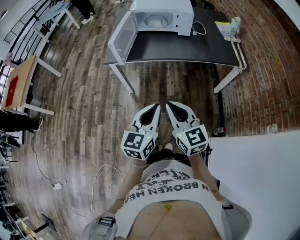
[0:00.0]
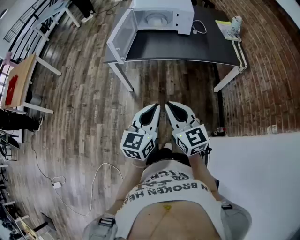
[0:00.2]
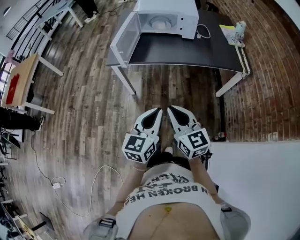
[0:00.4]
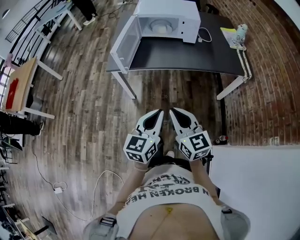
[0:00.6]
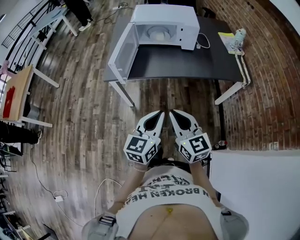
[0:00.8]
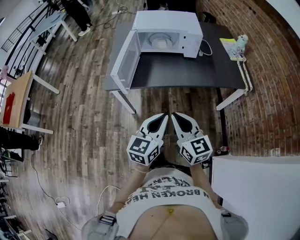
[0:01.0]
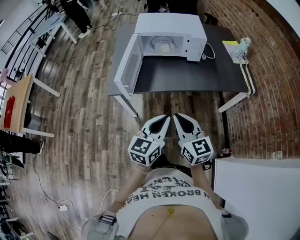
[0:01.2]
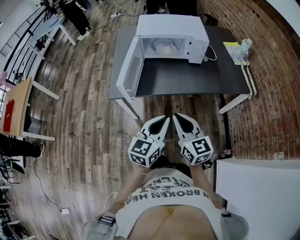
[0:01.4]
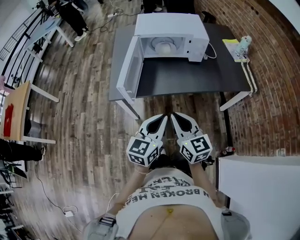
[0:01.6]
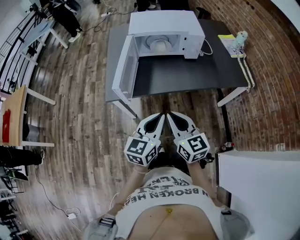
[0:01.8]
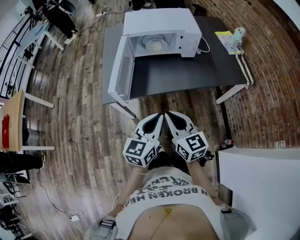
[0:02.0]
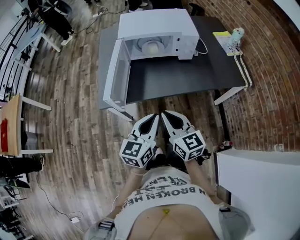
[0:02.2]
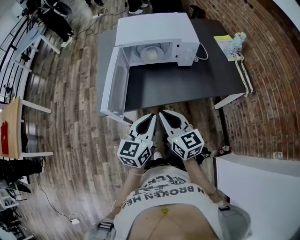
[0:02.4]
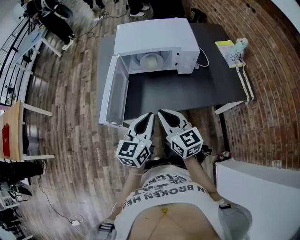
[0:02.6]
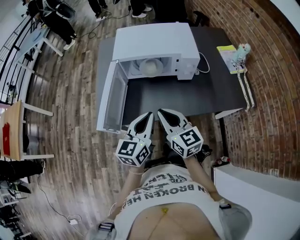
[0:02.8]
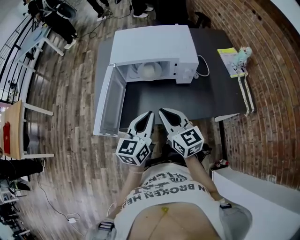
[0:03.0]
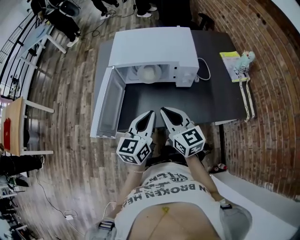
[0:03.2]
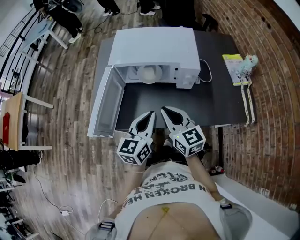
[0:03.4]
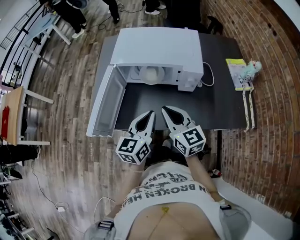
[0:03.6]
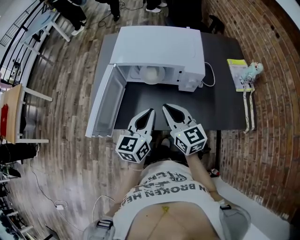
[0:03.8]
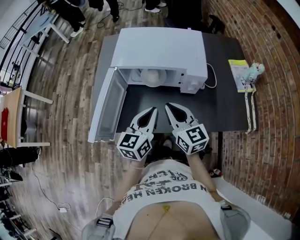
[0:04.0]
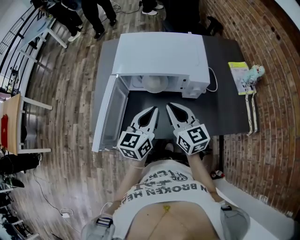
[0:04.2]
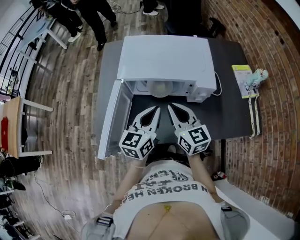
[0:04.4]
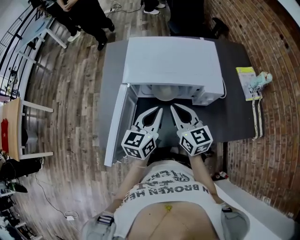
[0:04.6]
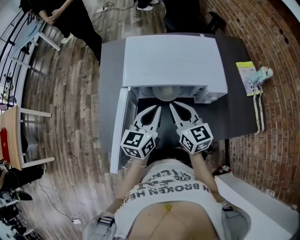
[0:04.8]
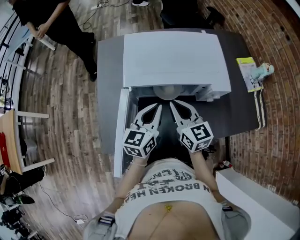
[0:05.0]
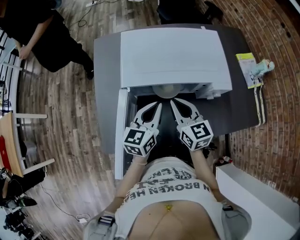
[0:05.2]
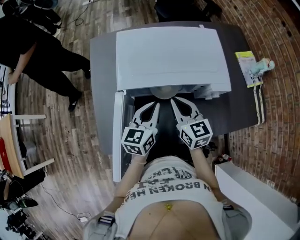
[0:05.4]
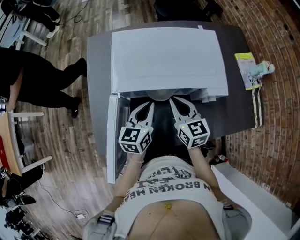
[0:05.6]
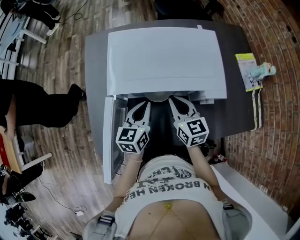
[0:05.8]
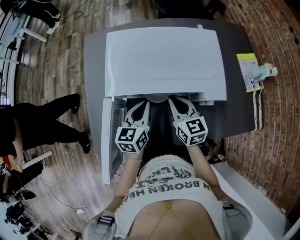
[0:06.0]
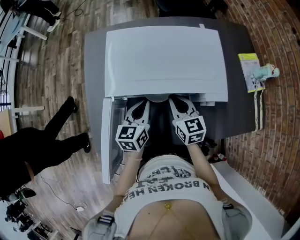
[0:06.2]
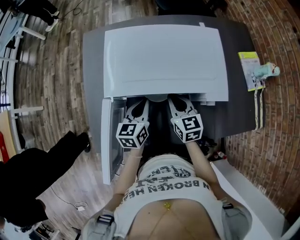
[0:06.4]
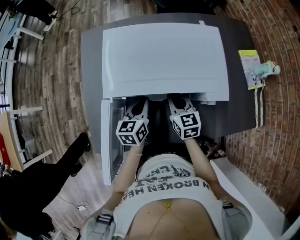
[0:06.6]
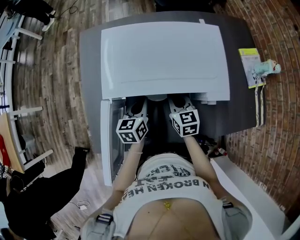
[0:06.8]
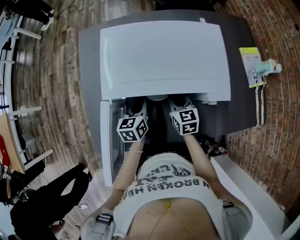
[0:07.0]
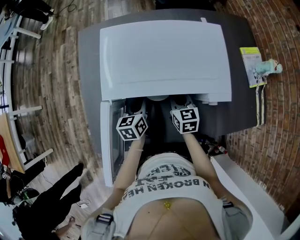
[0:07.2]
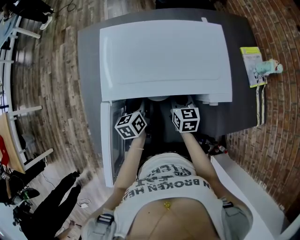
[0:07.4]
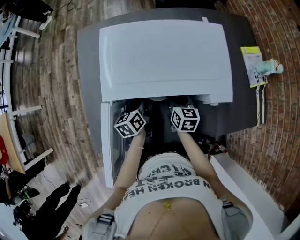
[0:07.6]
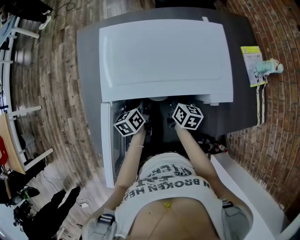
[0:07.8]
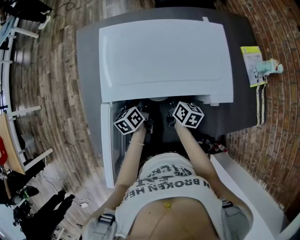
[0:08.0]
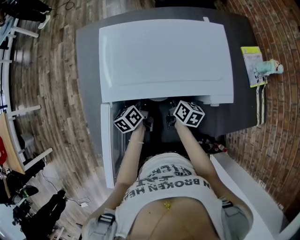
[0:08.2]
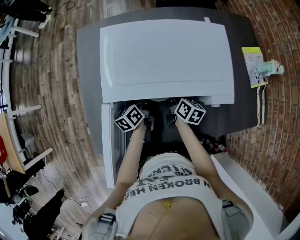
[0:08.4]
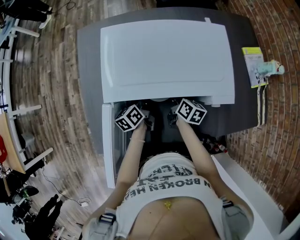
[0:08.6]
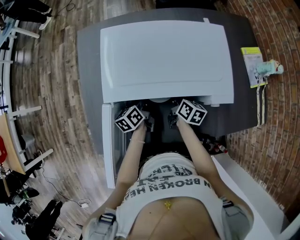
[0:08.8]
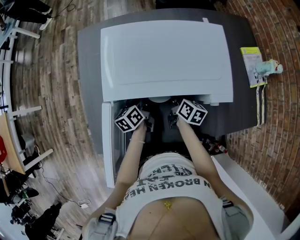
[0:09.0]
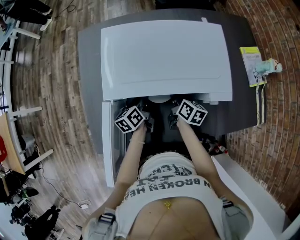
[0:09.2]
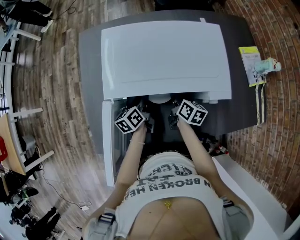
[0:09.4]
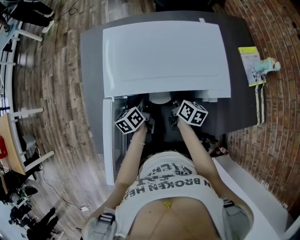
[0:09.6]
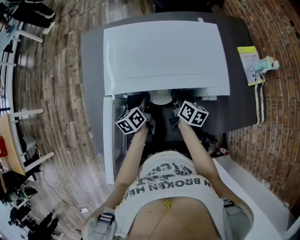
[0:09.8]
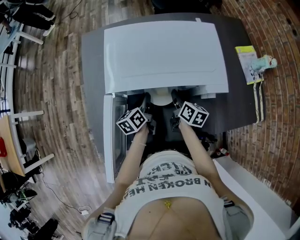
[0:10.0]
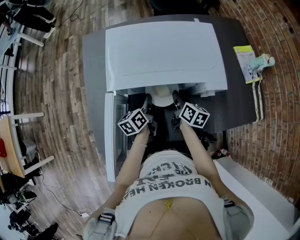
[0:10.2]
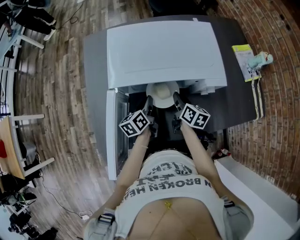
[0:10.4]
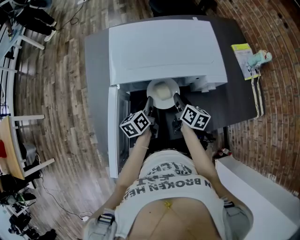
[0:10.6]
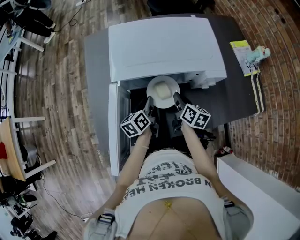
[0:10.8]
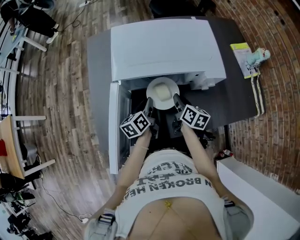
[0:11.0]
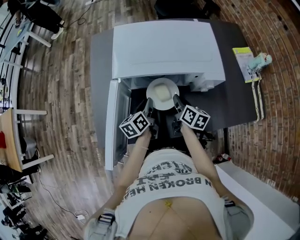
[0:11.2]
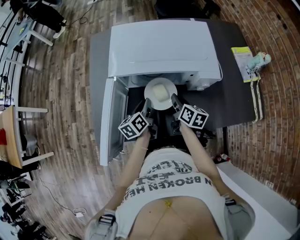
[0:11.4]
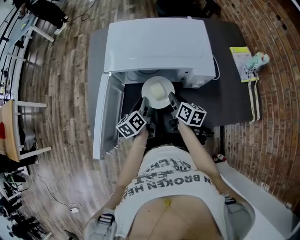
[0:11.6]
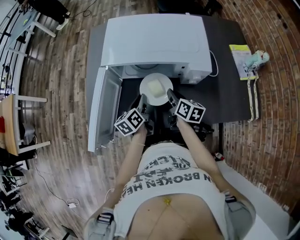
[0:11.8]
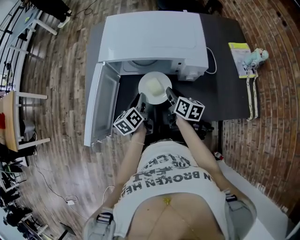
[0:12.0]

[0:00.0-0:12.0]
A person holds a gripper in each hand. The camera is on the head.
0:00.0 to 0:01.6: The grippers both shift forward by about 25 cm.
0:01.6 to 0:03.0: The two grippers go about 25 cm forward.
0:03.0 to 0:04.4: The grippers both shift forward by roughly 15 cm.
0:04.4 to 0:06.0: Both grippers move forward and downward, some 15 cm.
0:06.0 to 0:07.6: Both grippers move downward, roughly 10 cm. The right gripper changes its angle by about 20 degrees, and opens. Meanwhile the left gripper rotates about 30 degrees, and opens its fingers.
0:07.6 to 0:09.0: The right gripper swivels some 20 degrees, and closes up.
0:09.0 to 0:10.4: The two grippers go about 5 cm backward.
0:10.4 to 0:12.0: The two grippers go roughly 10 cm backward.

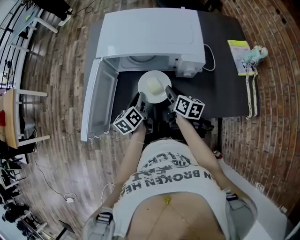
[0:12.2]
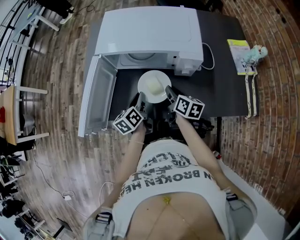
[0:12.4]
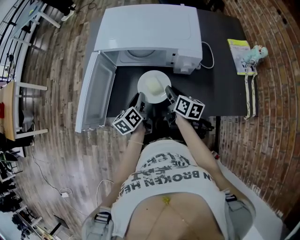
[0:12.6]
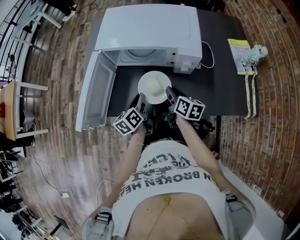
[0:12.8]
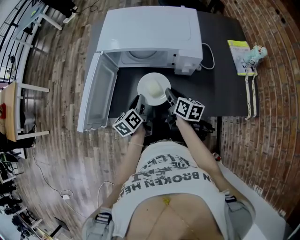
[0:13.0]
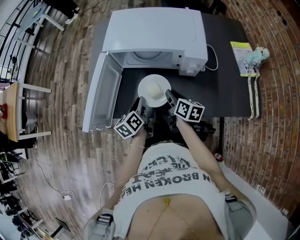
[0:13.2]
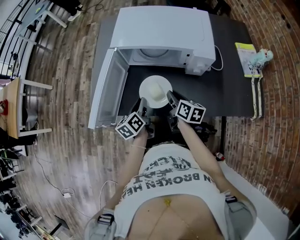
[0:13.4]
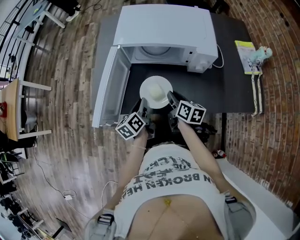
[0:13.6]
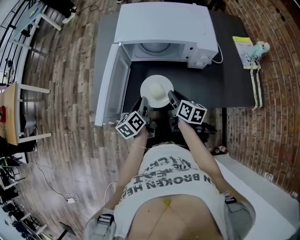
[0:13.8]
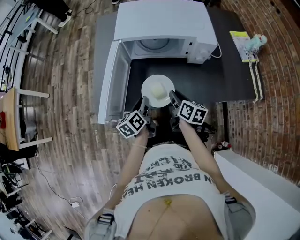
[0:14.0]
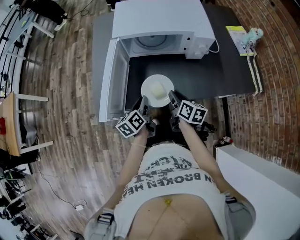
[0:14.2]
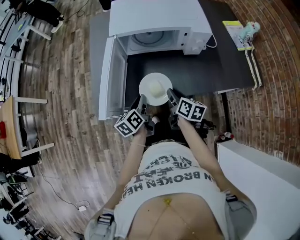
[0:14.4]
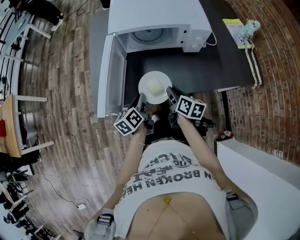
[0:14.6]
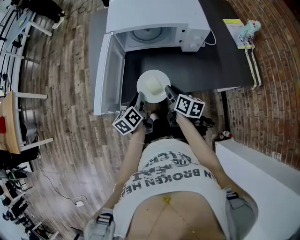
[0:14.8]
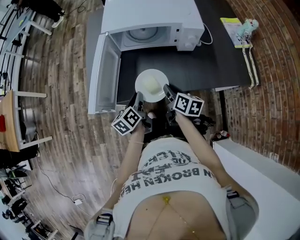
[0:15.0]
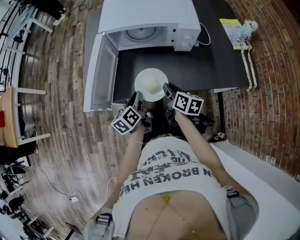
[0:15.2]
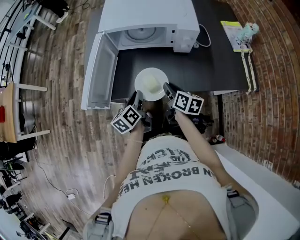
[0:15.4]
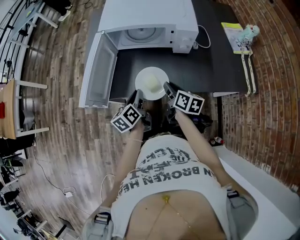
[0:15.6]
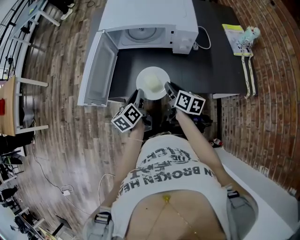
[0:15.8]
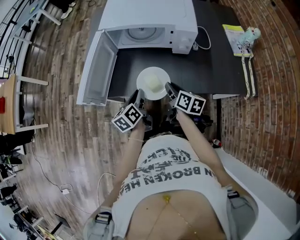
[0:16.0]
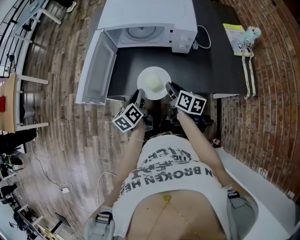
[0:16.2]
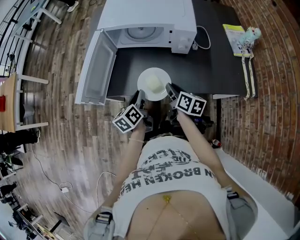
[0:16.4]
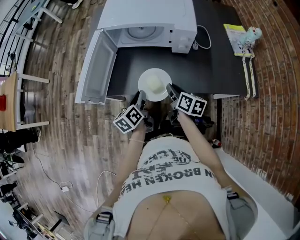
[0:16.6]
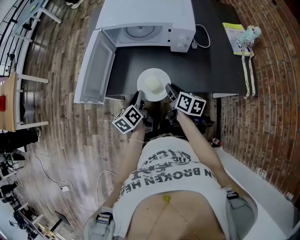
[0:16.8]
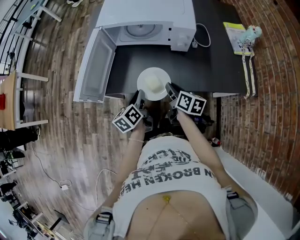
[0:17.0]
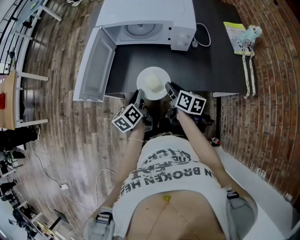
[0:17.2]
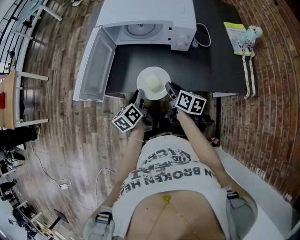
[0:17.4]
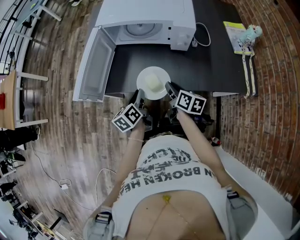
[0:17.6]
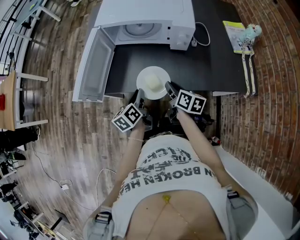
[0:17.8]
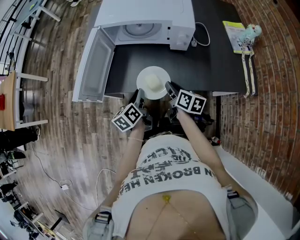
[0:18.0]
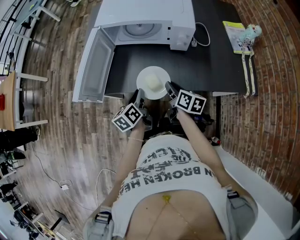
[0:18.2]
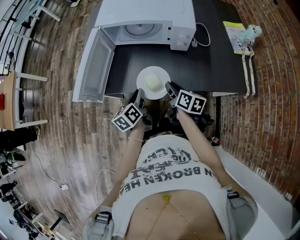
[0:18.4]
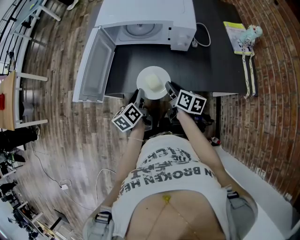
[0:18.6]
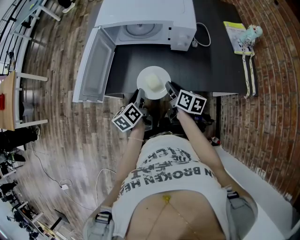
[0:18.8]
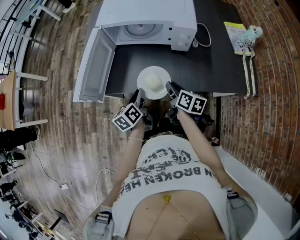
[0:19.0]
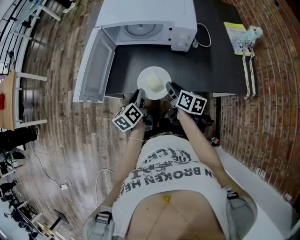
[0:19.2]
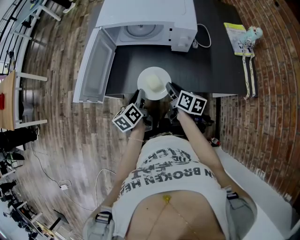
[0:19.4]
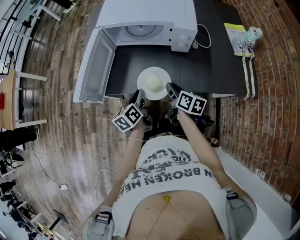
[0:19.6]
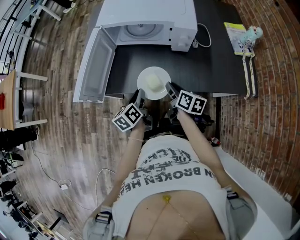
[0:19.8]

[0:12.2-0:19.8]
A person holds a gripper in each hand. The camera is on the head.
0:12.2 to 0:13.8: The grippers both shift to the left and backward by roughly 10 cm.
0:13.8 to 0:15.2: Both grippers move backward, approximately 5 cm.
0:15.2 to 0:16.8: Both grippers move to the right, roughly 5 cm.
0:16.8 to 0:19.8: The two grippers keep their place.

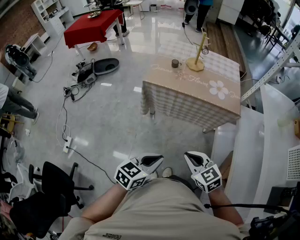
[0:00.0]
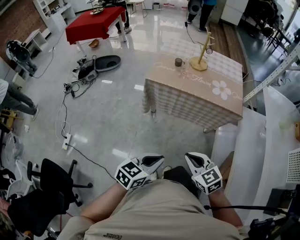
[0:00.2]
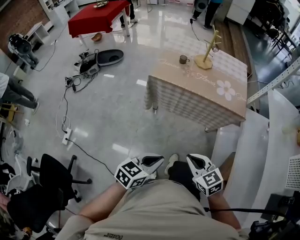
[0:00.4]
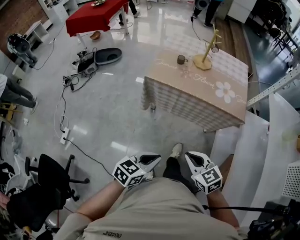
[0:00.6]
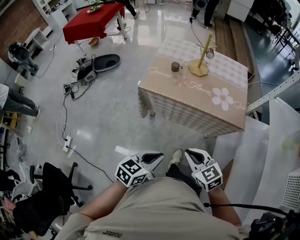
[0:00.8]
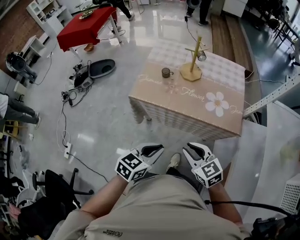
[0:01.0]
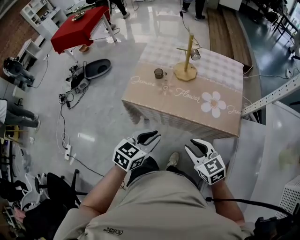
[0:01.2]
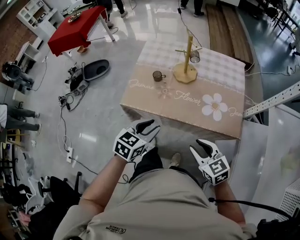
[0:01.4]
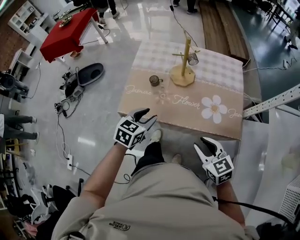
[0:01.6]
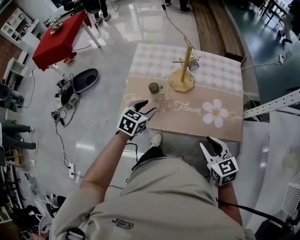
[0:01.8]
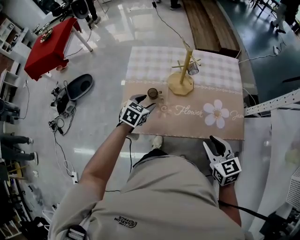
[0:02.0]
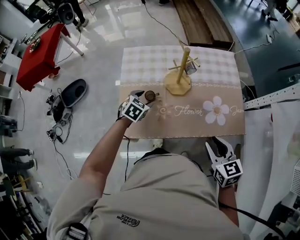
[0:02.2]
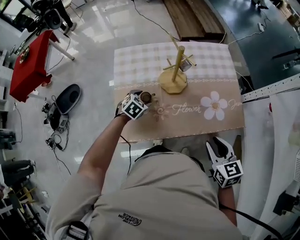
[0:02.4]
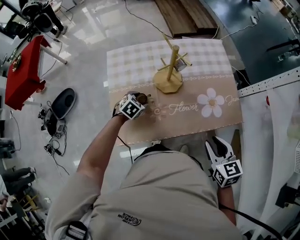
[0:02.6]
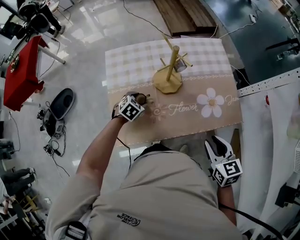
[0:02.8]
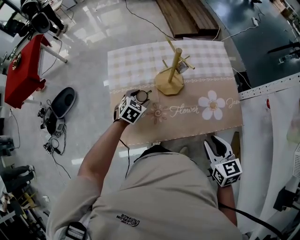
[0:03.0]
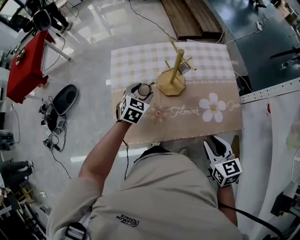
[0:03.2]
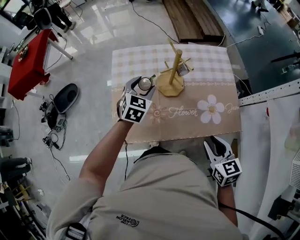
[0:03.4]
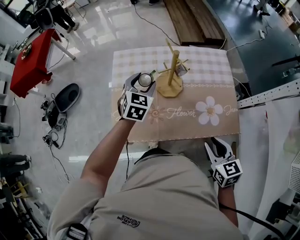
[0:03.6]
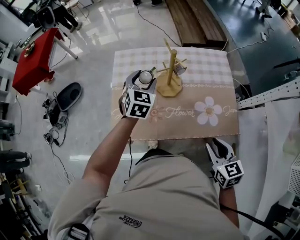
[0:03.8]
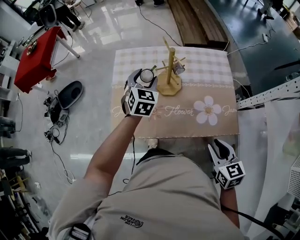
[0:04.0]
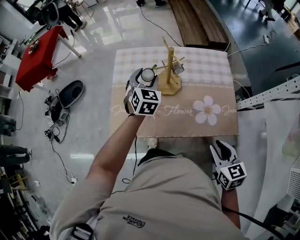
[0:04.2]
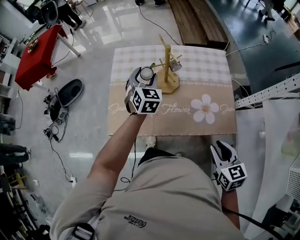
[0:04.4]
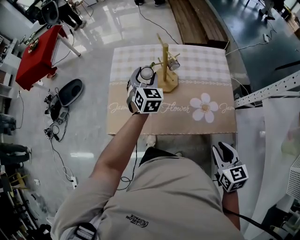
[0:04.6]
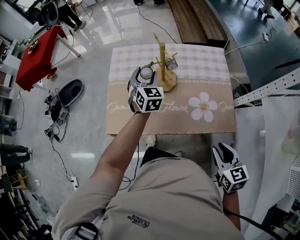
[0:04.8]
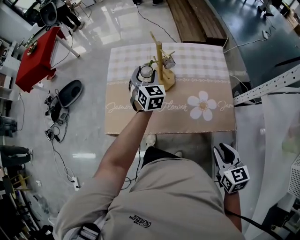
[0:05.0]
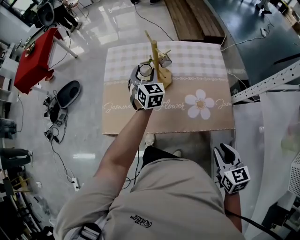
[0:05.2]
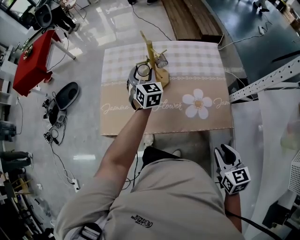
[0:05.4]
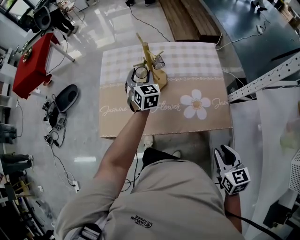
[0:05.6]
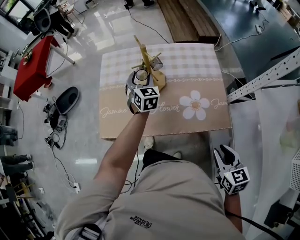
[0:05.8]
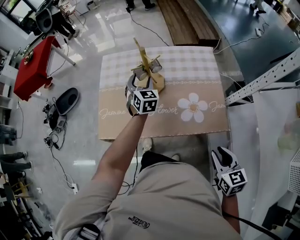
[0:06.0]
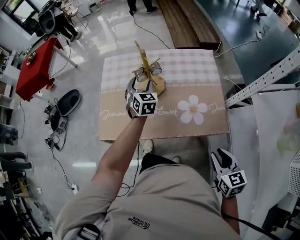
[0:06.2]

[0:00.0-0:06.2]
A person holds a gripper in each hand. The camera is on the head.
0:00.0 to 0:01.6: Both grippers move forward, about 40 cm. The right gripper opens its fingers, while the left gripper opens up.
0:01.6 to 0:03.2: The right gripper moves roughly 10 cm, and turns by some 30 degrees. The left gripper travels downward and back again, some 15 cm each way, swivels about 20 degrees, and opens up.
0:03.2 to 0:04.6: The left gripper shifts some 10 cm upward and to the right, and rotates roughly 30 degrees. The right gripper goes approximately 15 cm to the right and backward.
0:04.6 to 0:06.2: The left gripper moves some 5 cm; the right gripper heads to the right, covering some 5 cm.
